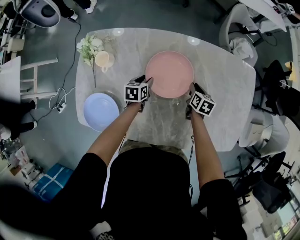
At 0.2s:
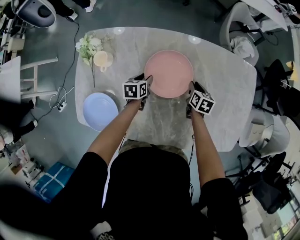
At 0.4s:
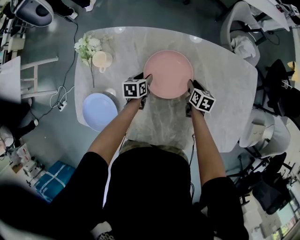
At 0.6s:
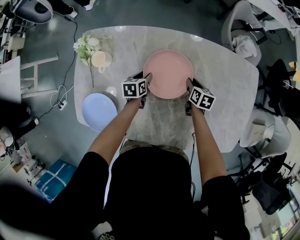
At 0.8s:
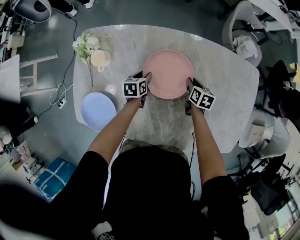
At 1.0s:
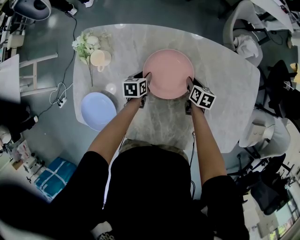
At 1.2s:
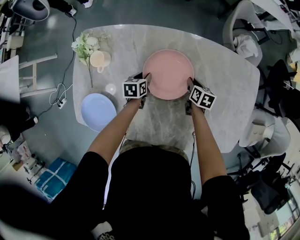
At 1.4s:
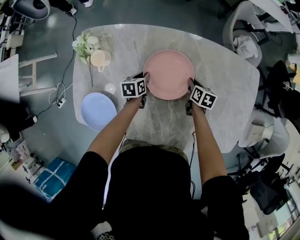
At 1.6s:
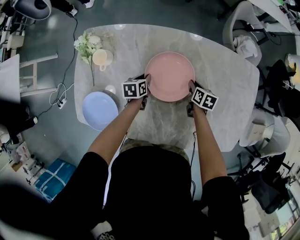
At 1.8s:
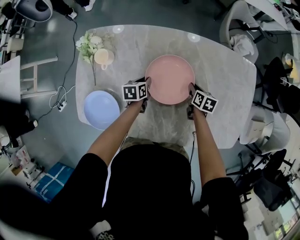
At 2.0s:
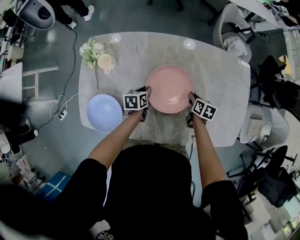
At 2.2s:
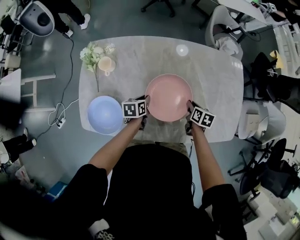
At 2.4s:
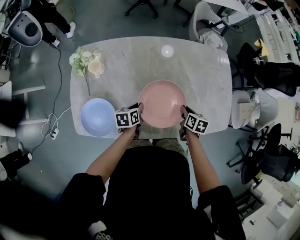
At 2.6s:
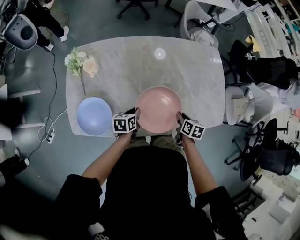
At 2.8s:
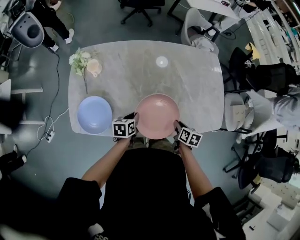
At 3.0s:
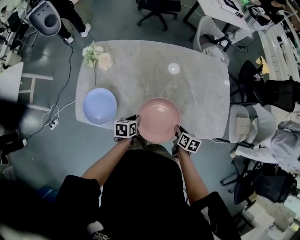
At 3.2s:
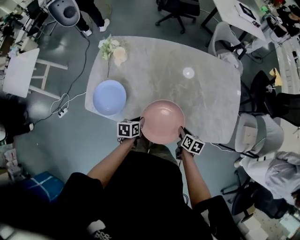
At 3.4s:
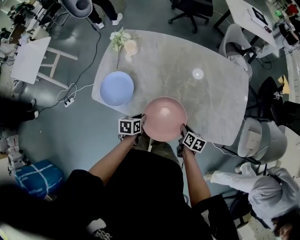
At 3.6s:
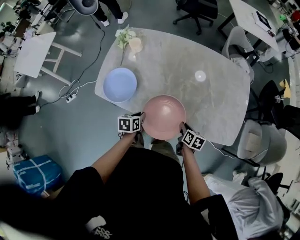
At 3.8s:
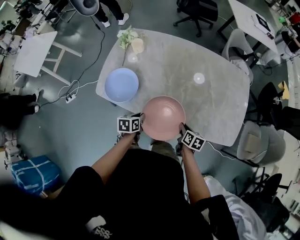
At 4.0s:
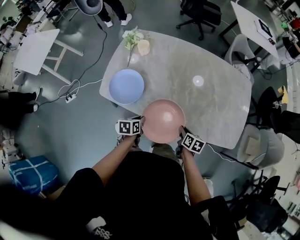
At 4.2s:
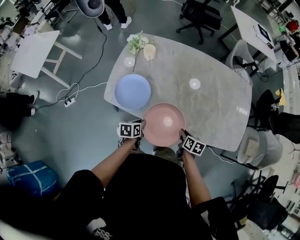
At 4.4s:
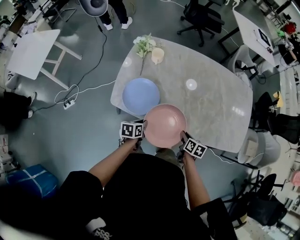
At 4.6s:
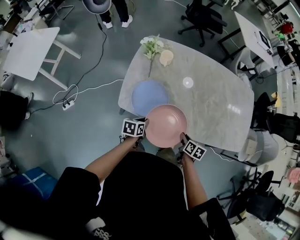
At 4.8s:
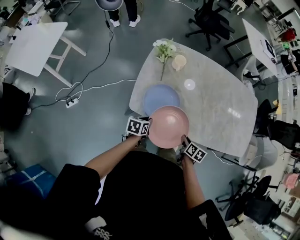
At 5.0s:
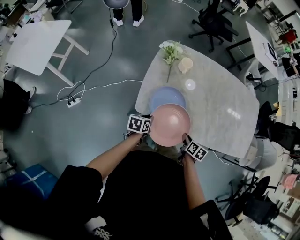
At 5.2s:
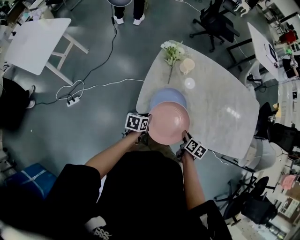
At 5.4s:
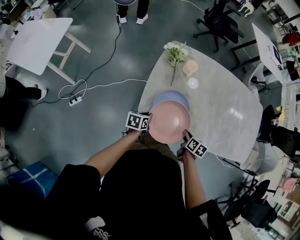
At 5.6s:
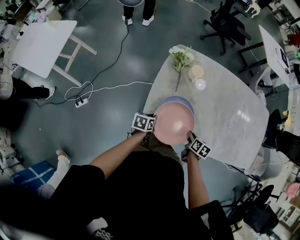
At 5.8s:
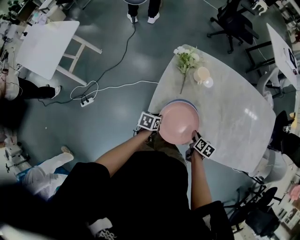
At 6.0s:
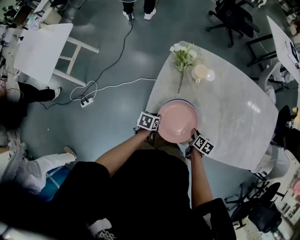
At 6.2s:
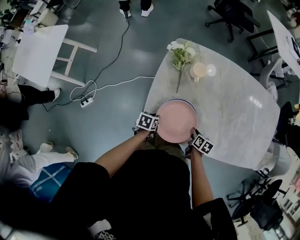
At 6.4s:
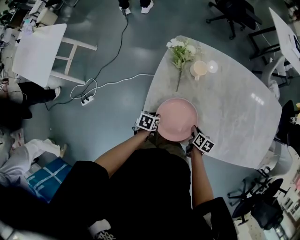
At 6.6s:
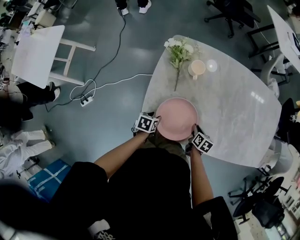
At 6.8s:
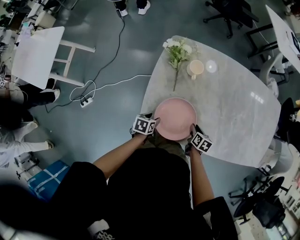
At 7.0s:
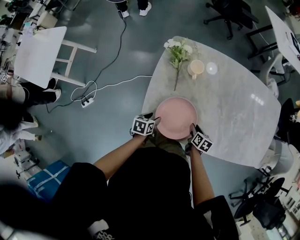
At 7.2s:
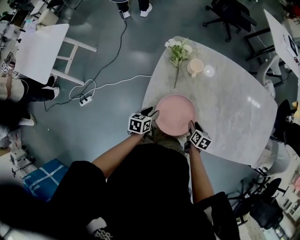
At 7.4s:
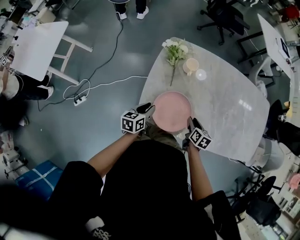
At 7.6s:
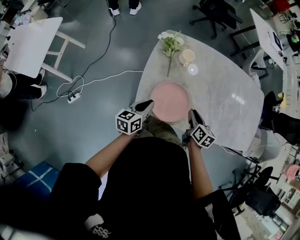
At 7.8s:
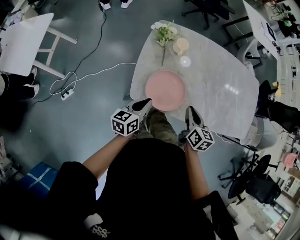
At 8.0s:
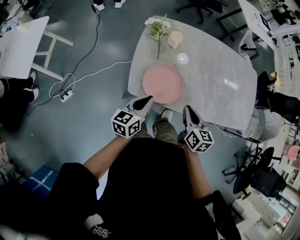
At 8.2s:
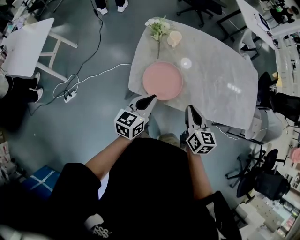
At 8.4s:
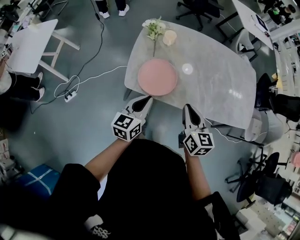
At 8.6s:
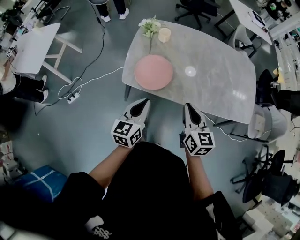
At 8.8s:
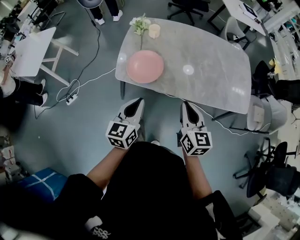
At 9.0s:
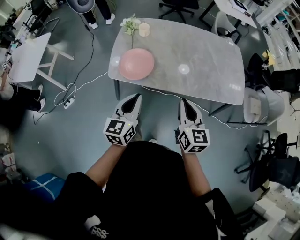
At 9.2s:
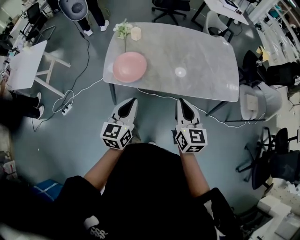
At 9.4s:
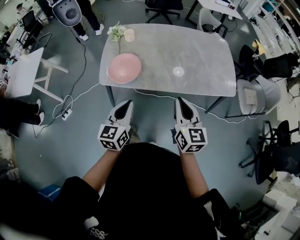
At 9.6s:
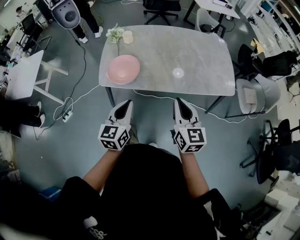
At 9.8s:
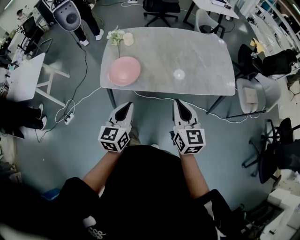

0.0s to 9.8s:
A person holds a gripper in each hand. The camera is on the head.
0.0s to 1.4s: The left gripper closes.
1.4s to 2.8s: The left gripper goes roughly 30 cm backward and upward. The right gripper is displaced backward by approximately 30 cm.
2.8s to 4.2s: The right gripper goes approximately 15 cm to the left and backward. Meanwhile the left gripper heads backward and to the left, covering roughly 20 cm.
4.2s to 5.6s: The grippers both shift to the left by roughly 30 cm.
5.6s to 7.0s: The left gripper changes place by some 5 cm, and opens up; the right gripper shifts roughly 10 cm forward and downward.
7.0s to 8.4s: Both grippers travel together upward and backward, about 35 cm. The right gripper tips its fingers upward by some 30 degrees. Meanwhile the left gripper angles its fingers upward, by about 40 degrees, and closes.
8.4s to 9.8s: The left gripper is displaced backward, to the right and upward by approximately 25 cm. Meanwhile the right gripper shifts about 25 cm to the right, backward and upward.

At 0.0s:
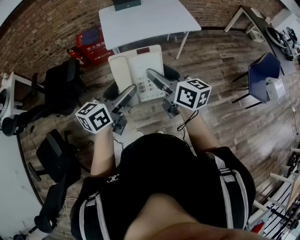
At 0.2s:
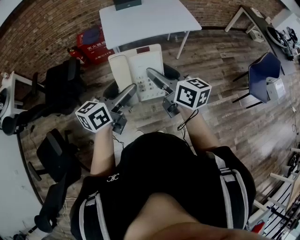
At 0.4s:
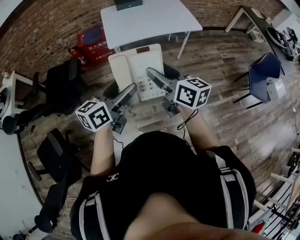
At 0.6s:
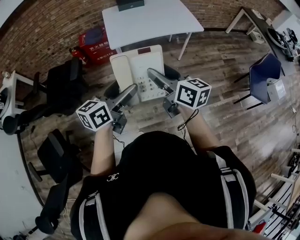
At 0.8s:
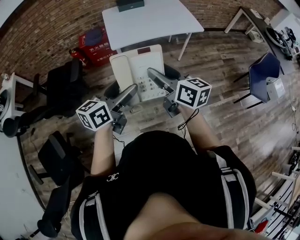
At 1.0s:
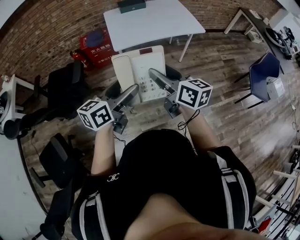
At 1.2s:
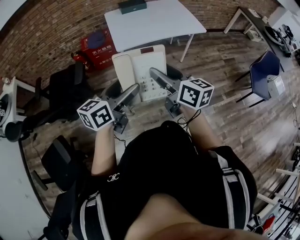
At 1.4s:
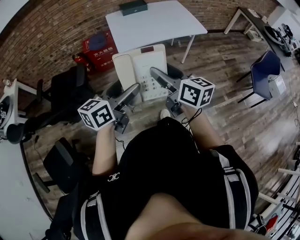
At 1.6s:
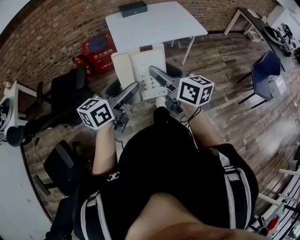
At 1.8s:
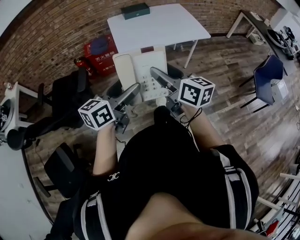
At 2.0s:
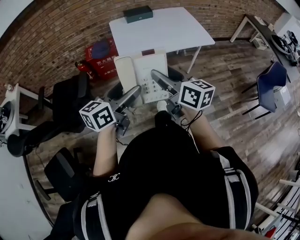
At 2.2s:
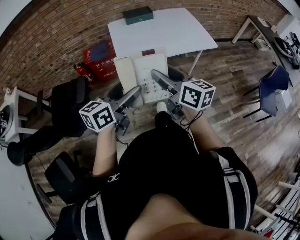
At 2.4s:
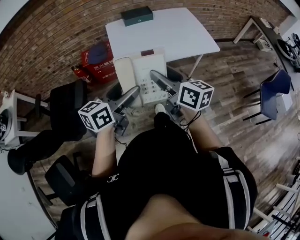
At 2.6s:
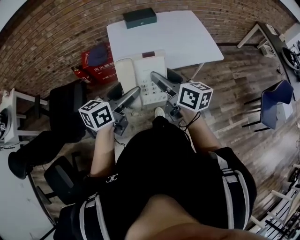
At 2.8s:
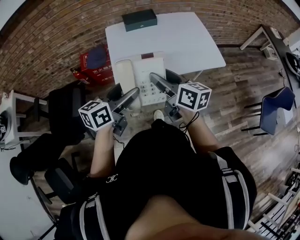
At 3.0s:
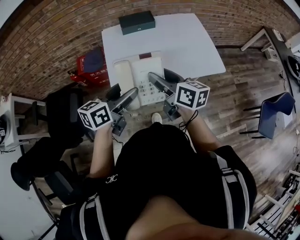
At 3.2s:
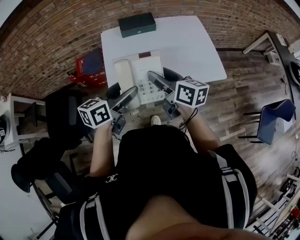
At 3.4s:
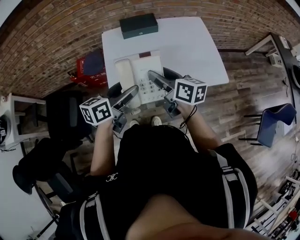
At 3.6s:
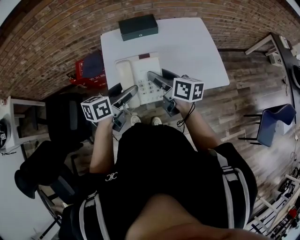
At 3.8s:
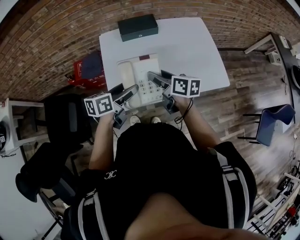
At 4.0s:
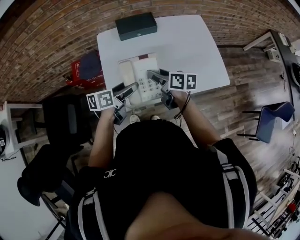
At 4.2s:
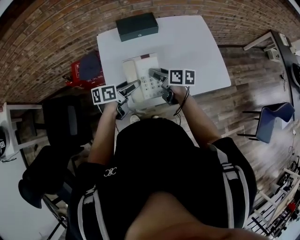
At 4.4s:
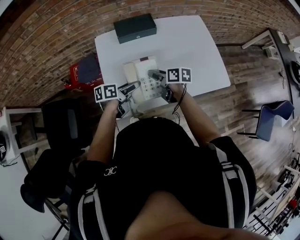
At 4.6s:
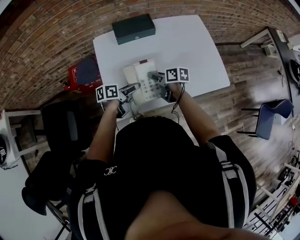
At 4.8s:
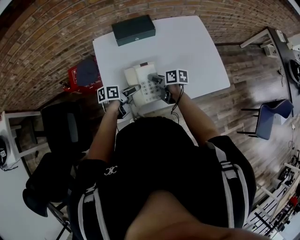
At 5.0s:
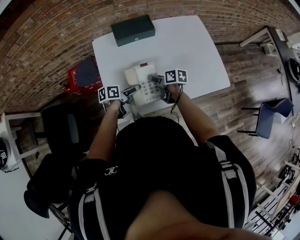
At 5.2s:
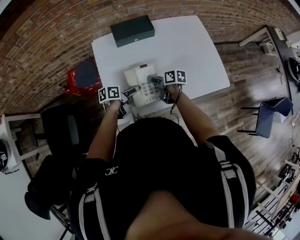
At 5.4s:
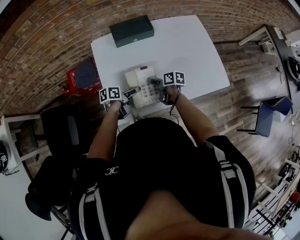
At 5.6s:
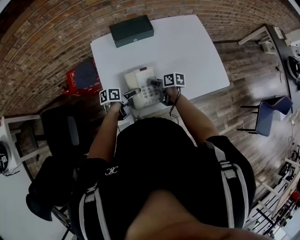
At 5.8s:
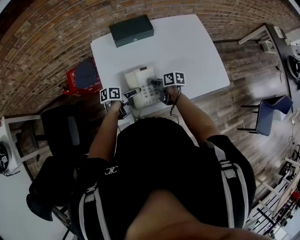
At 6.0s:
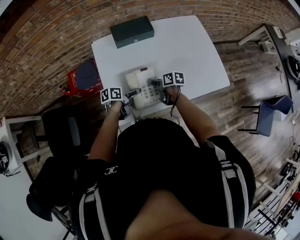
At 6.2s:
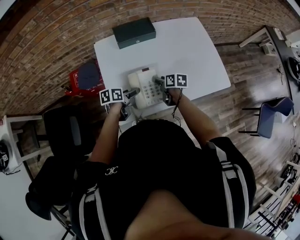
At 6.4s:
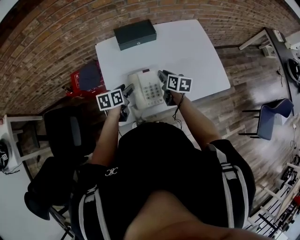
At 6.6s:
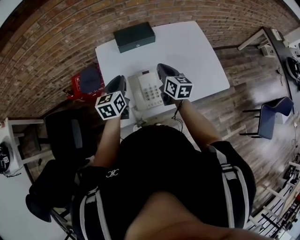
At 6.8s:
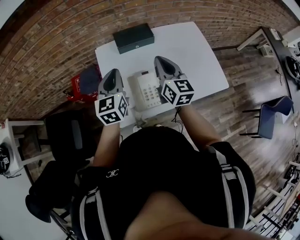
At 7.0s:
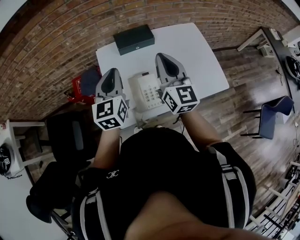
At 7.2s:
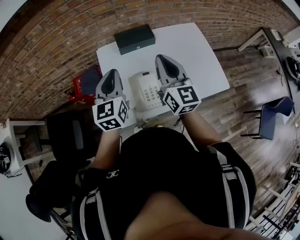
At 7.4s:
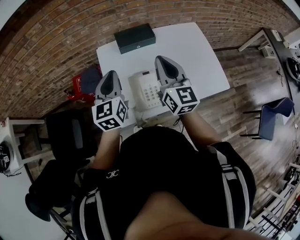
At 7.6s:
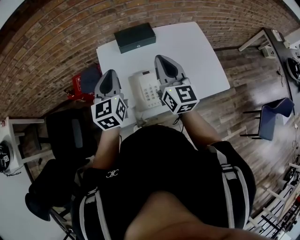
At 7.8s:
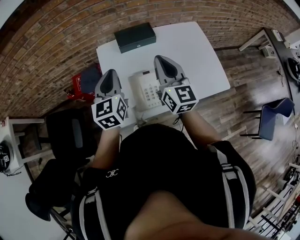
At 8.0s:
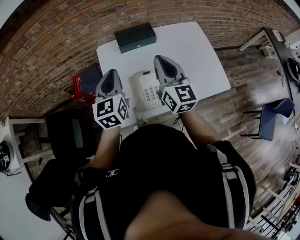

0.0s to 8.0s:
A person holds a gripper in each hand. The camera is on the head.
0.0s to 1.6s: Both grippers move to the left, roughly 10 cm.
1.6s to 3.2s: Both grippers are carried forward, roughly 50 cm.
3.2s to 4.8s: The grippers both shift downward and forward by approximately 30 cm. The right gripper changes its angle by approximately 30 degrees, while the left gripper swivels about 30 degrees.
4.8s to 6.4s: The left gripper moves some 5 cm, and rotates about 30 degrees. Meanwhile the right gripper changes place by some 5 cm, changes its angle by about 30 degrees, and closes up.
6.4s to 8.0s: The grippers both shift upward by about 25 cm. The left gripper swivels about 50 degrees, and closes its fingers. The right gripper points its fingers approximately 30 degrees further upward, and closes up.

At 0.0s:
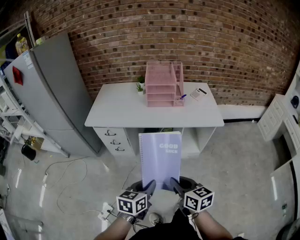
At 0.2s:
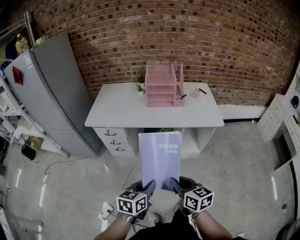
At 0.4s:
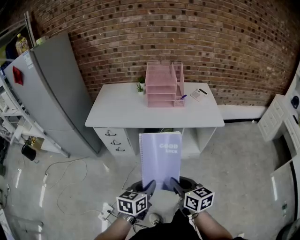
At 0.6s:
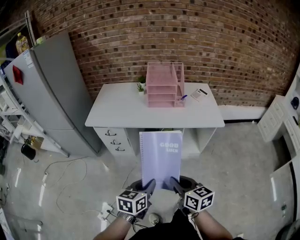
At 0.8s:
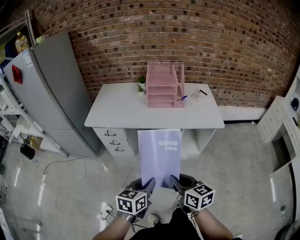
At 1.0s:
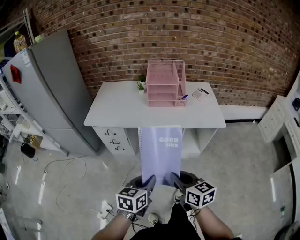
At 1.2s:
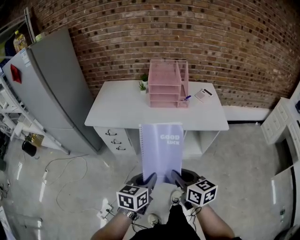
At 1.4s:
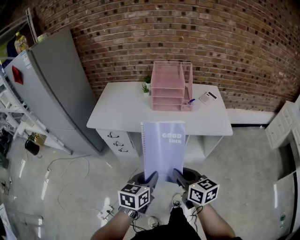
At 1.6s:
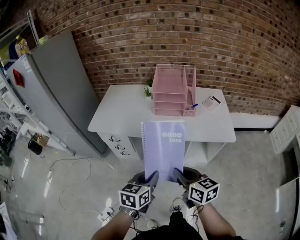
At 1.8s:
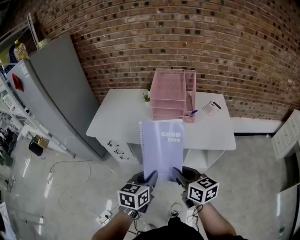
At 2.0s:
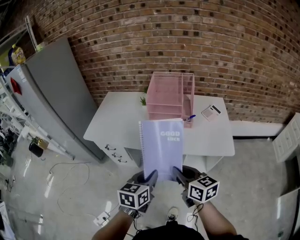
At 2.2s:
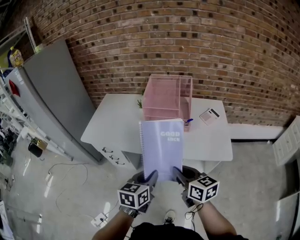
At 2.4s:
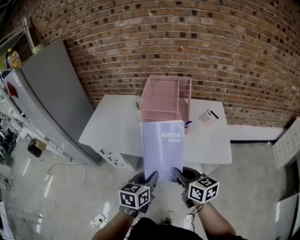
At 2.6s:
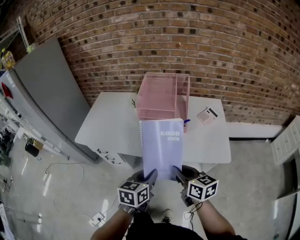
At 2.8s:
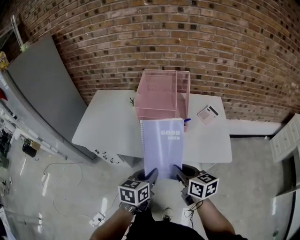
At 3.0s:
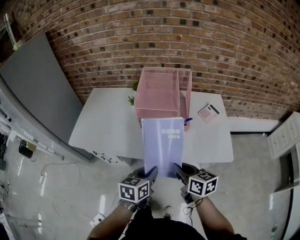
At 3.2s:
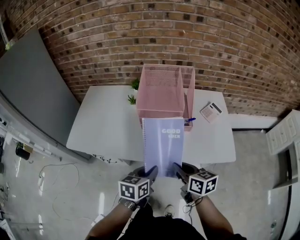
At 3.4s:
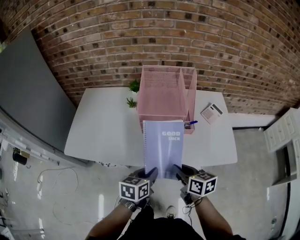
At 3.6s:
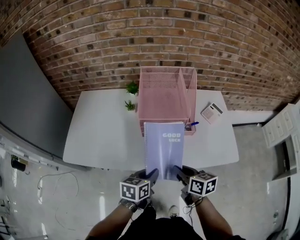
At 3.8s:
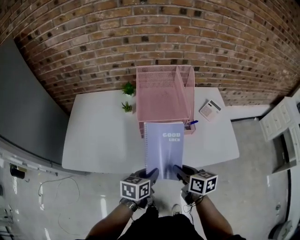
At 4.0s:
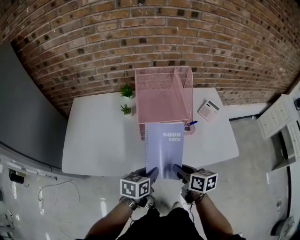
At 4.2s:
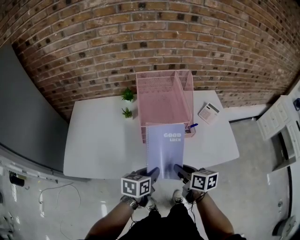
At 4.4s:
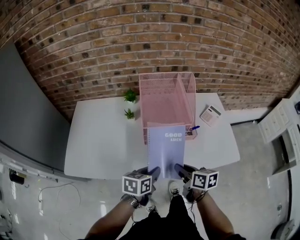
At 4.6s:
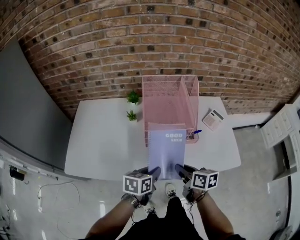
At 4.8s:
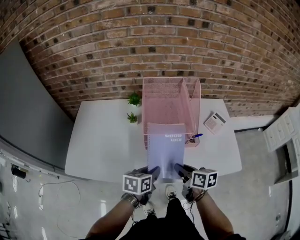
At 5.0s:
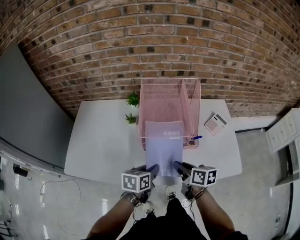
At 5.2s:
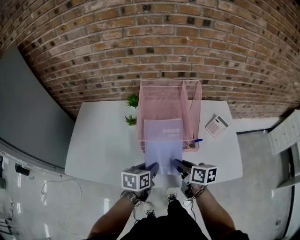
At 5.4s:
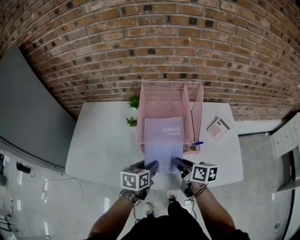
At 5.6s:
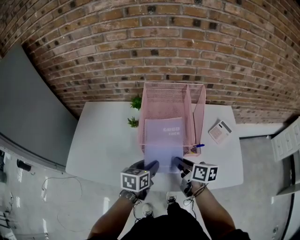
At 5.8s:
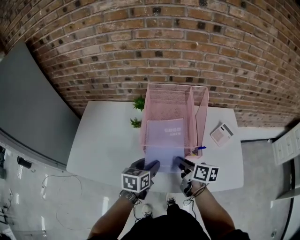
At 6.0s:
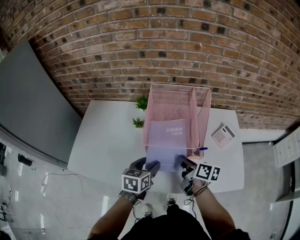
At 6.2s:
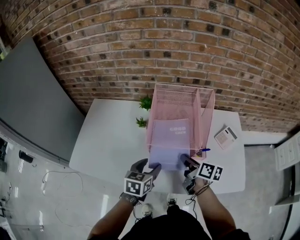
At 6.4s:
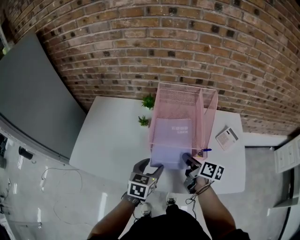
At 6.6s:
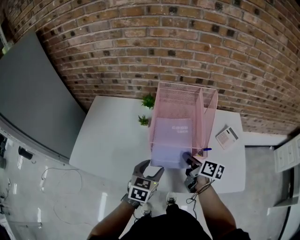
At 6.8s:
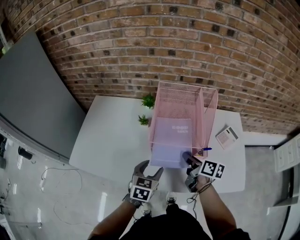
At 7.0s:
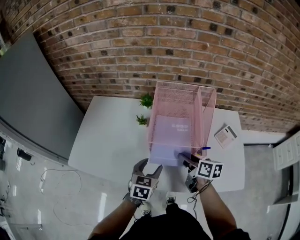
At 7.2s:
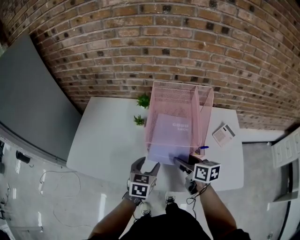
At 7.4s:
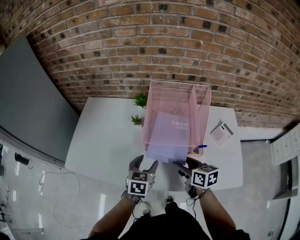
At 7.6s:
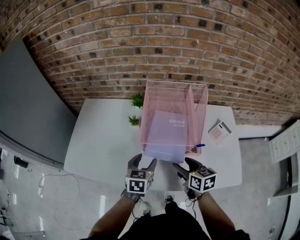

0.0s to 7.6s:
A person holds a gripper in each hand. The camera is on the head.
0.0s to 1.6s: The grippers both shift forward by about 15 cm.
1.6s to 3.0s: The two grippers go some 20 cm forward and to the right.
3.0s to 4.6s: The two grippers go approximately 15 cm forward, to the left and downward.
4.6s to 6.0s: The two grippers go roughly 10 cm forward. The left gripper opens.
6.0s to 7.6s: The right gripper turns by approximately 30 degrees, and opens its fingers.
